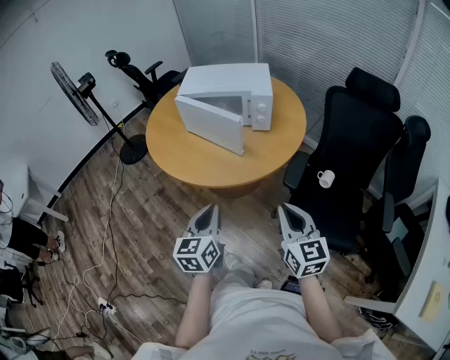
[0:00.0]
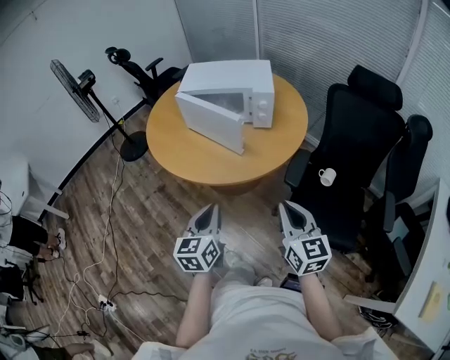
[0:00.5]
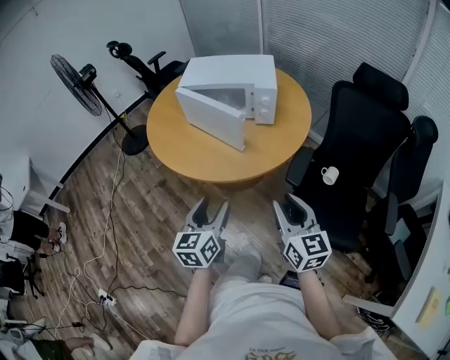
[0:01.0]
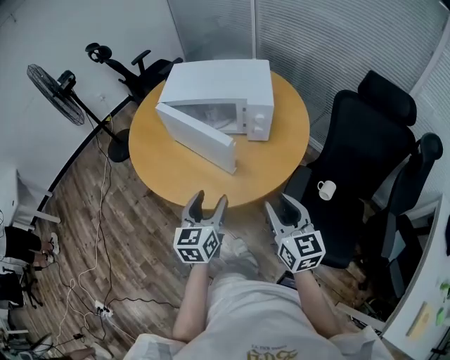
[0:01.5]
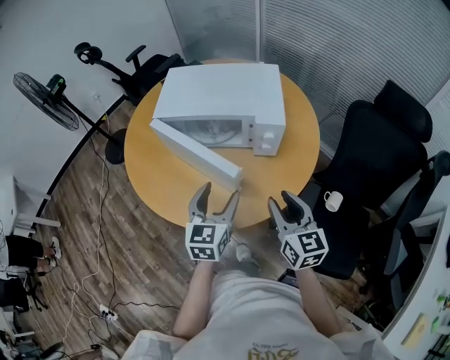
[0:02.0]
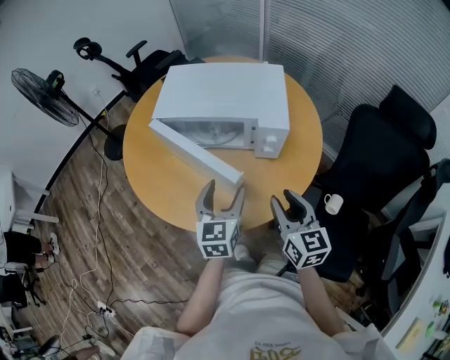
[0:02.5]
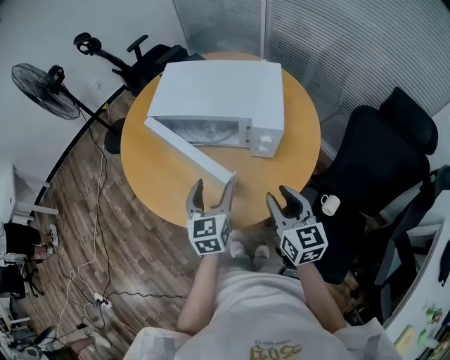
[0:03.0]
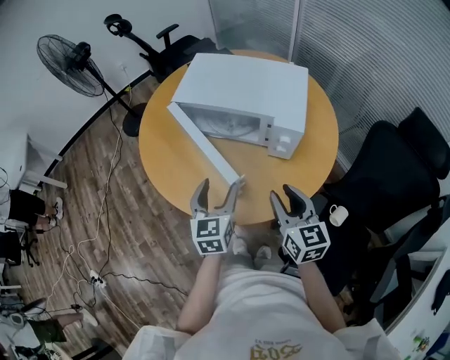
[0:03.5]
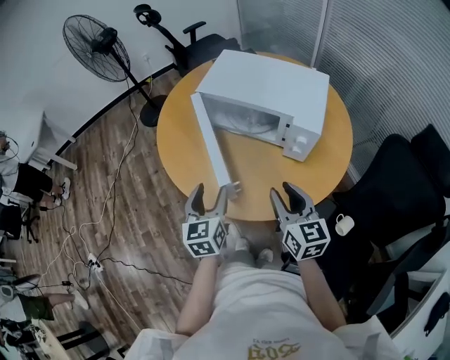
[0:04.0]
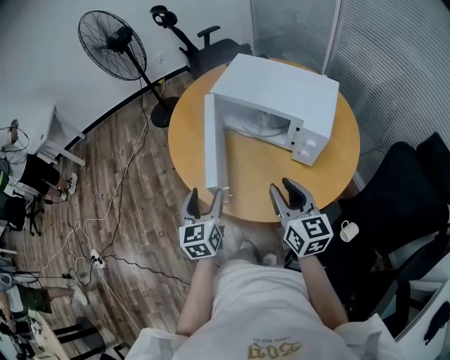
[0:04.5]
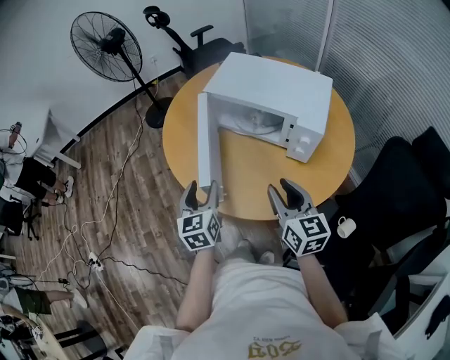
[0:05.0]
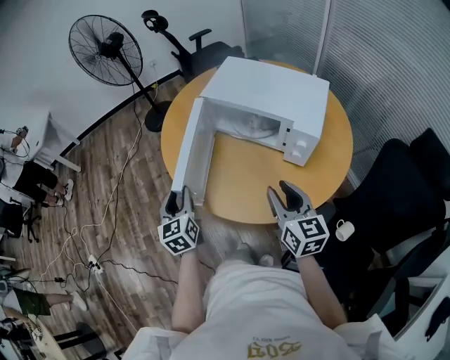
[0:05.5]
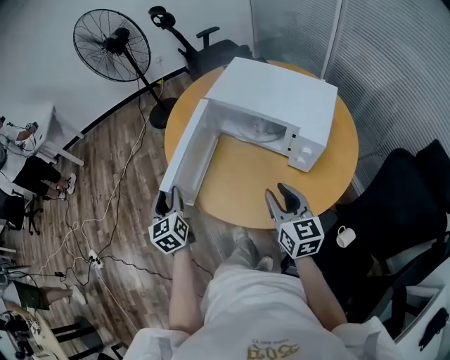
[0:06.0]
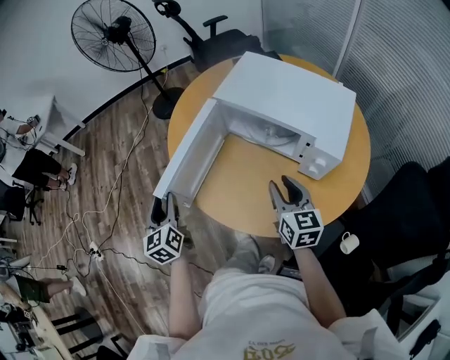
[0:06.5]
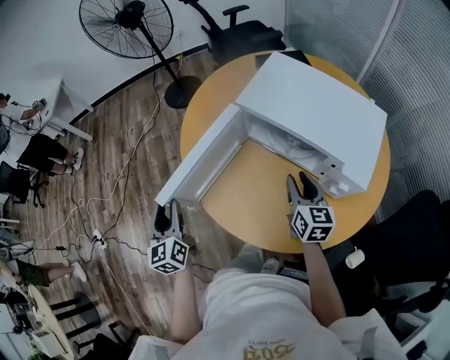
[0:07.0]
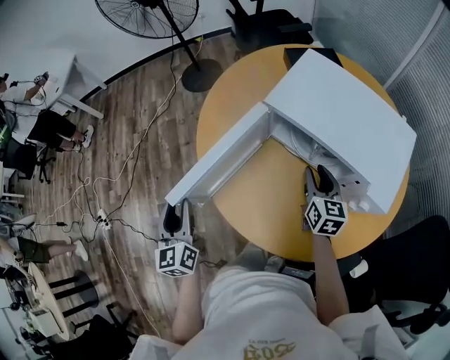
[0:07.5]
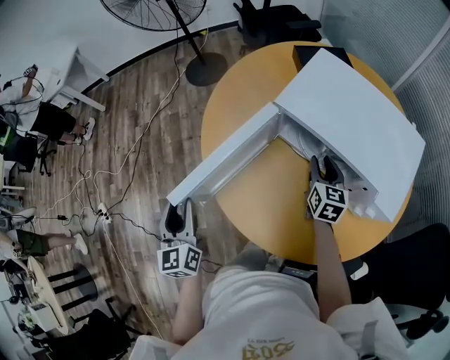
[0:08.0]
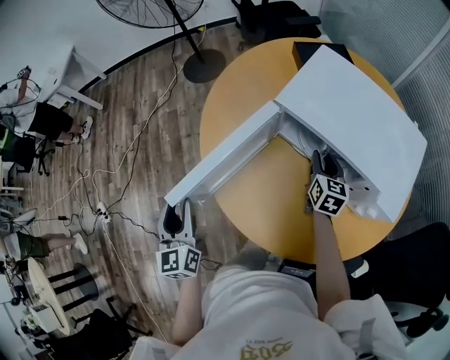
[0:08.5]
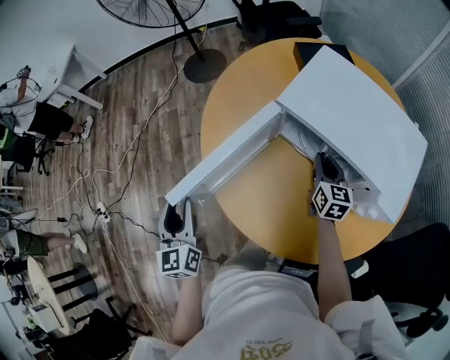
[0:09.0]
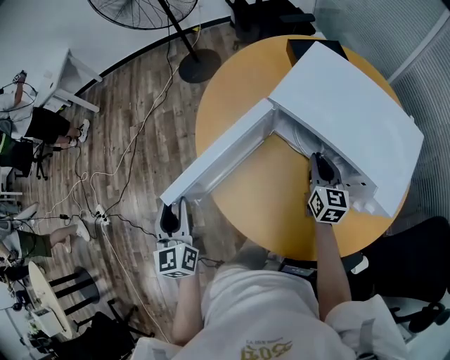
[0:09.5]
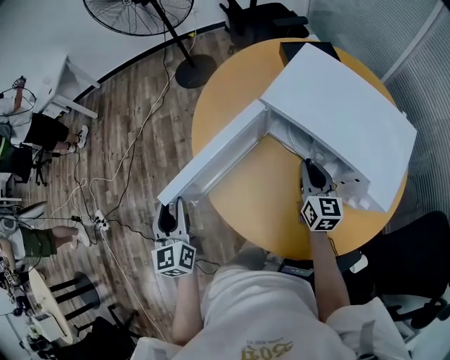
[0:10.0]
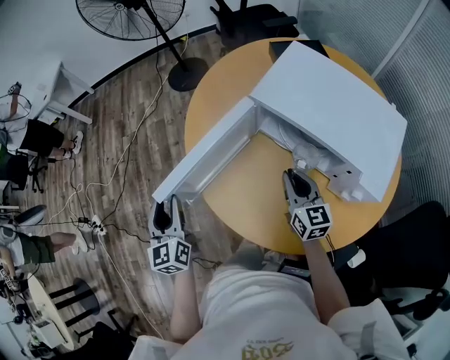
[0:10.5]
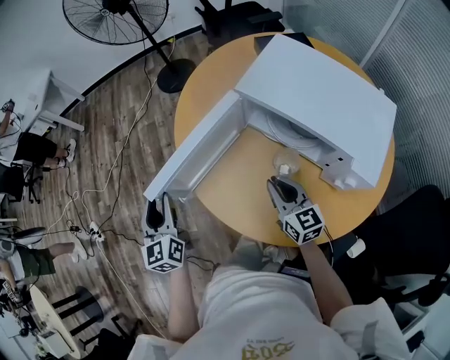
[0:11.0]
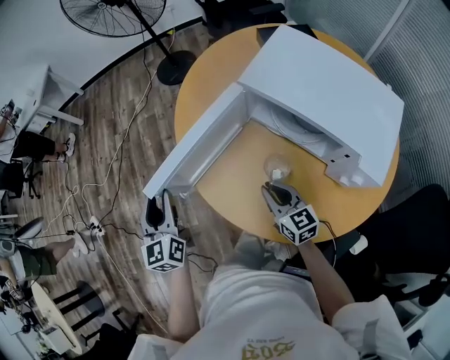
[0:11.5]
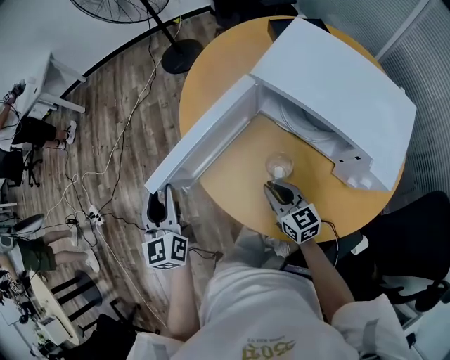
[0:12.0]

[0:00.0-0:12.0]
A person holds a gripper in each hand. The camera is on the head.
0.0 to 2.0 s: The two grippers go about 30 cm forward. The right gripper opens up. The left gripper opens up.
2.0 to 4.0 s: The left gripper is displaced to the left by roughly 10 cm, and changes its angle by approximately 30 degrees.
4.0 to 6.0 s: The left gripper goes approximately 15 cm to the left, and turns by about 20 degrees.
6.0 to 8.0 s: The right gripper moves forward and downward, some 30 cm, while the left gripper travels to the left and forward by approximately 5 cm.
8.0 to 10.0 s: The right gripper closes its fingers.
10.0 to 12.0 s: The right gripper heads to the left, backward and downward, covering about 15 cm, and rotates some 30 degrees.

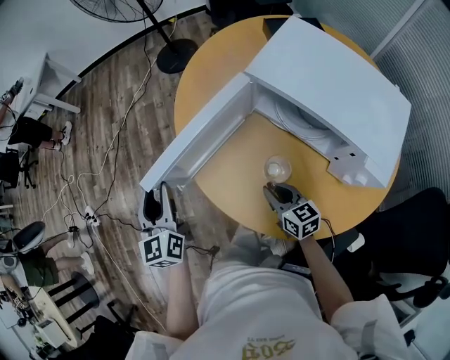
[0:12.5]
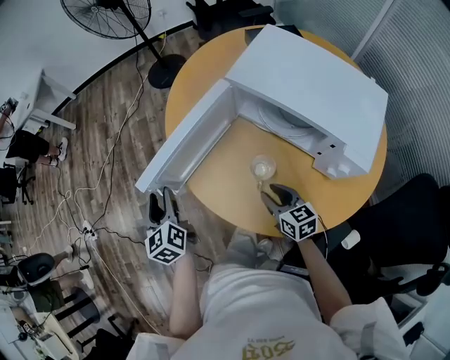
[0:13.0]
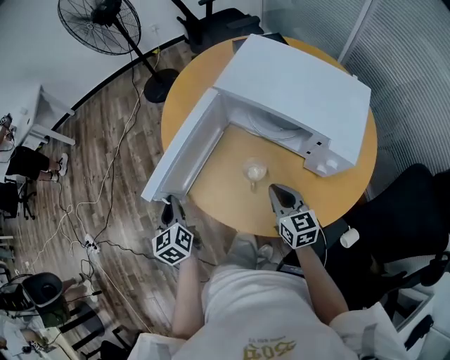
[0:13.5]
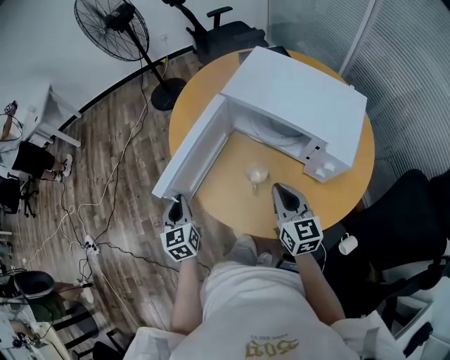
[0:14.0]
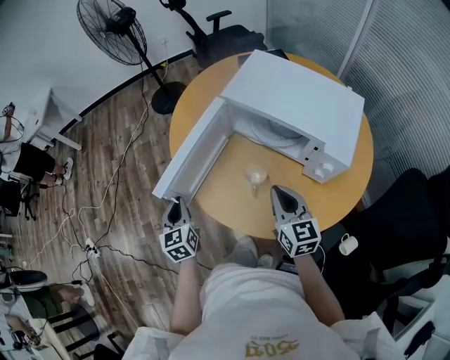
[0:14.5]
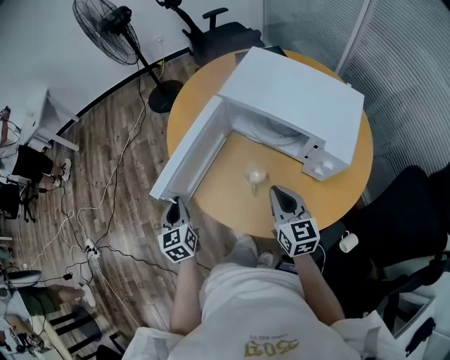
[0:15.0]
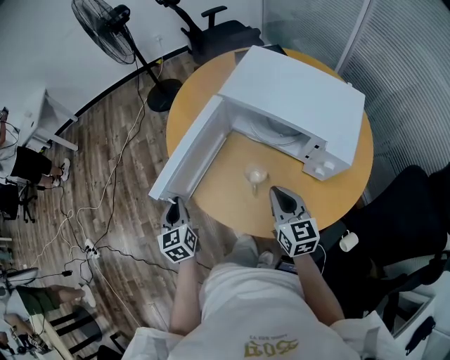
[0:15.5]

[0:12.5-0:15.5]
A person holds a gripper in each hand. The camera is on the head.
12.5 to 14.0 s: The right gripper heads upward, covering some 15 cm, and swivels approximately 30 degrees. Meanwhile the left gripper goes about 10 cm downward and to the right, and closes.
14.0 to 15.5 s: There are only small adjustments of the grippers.

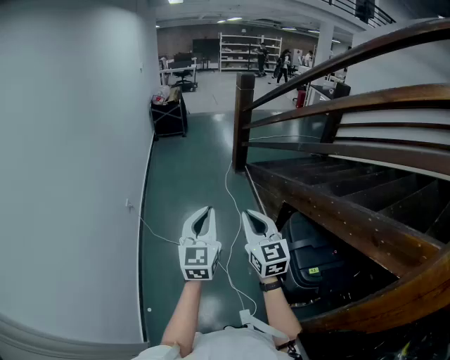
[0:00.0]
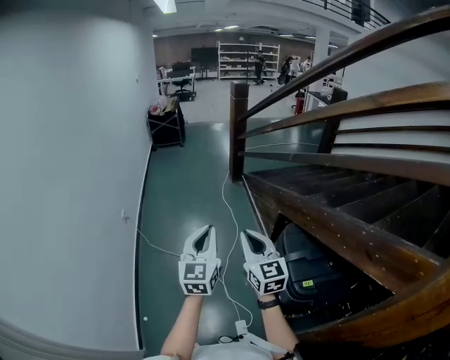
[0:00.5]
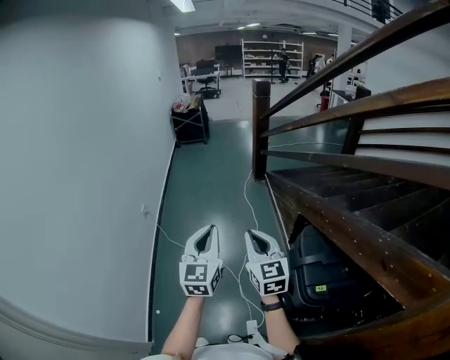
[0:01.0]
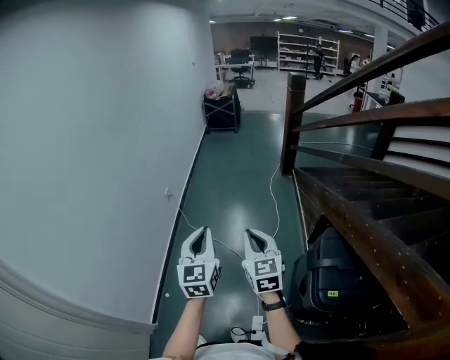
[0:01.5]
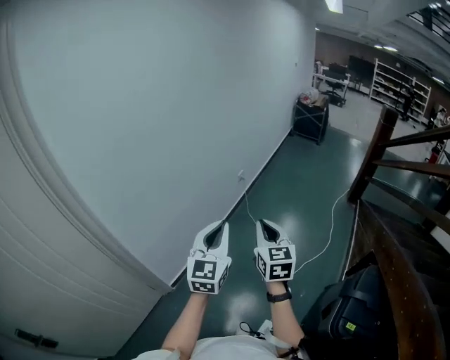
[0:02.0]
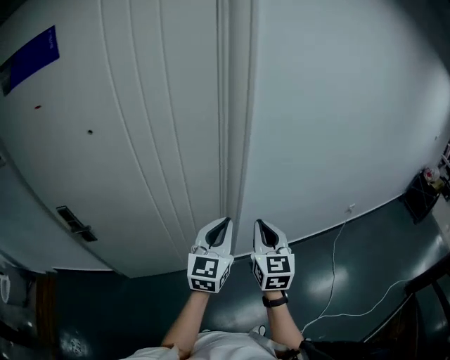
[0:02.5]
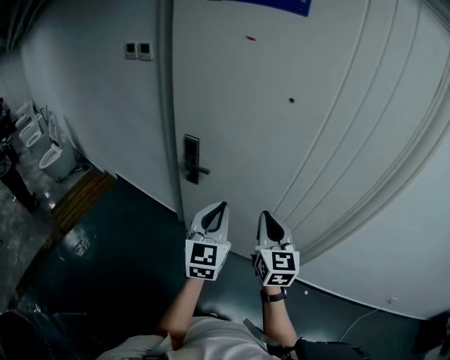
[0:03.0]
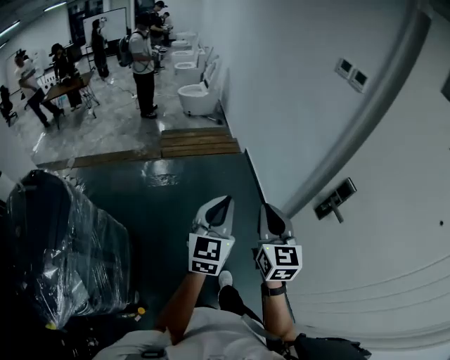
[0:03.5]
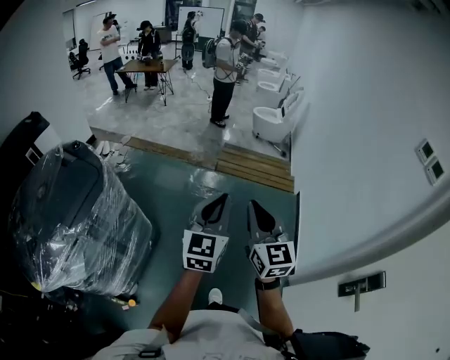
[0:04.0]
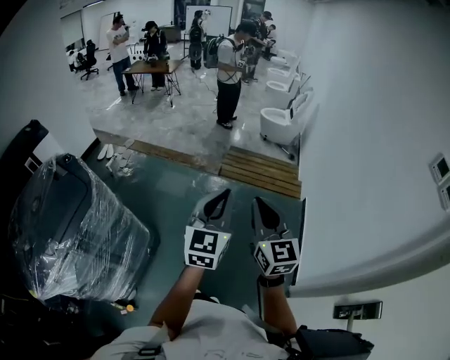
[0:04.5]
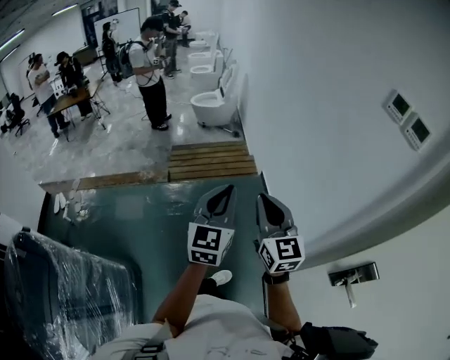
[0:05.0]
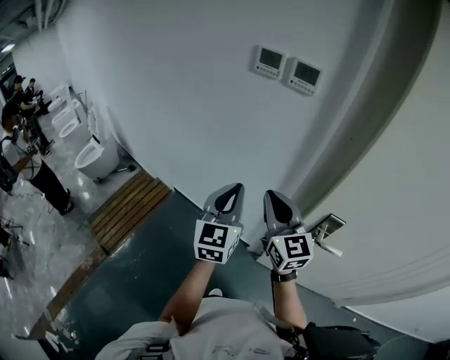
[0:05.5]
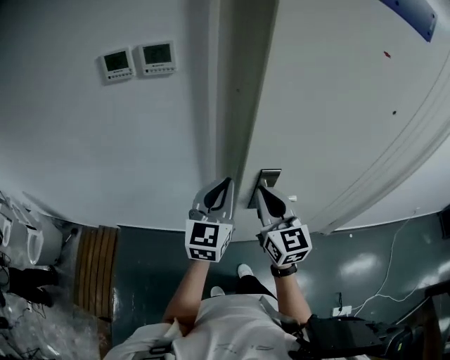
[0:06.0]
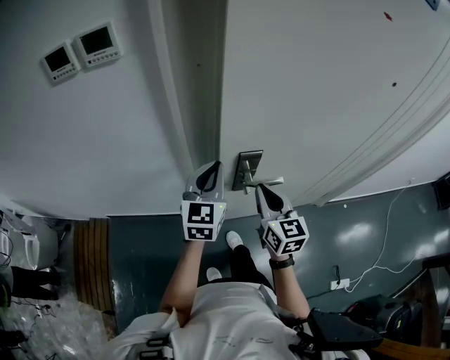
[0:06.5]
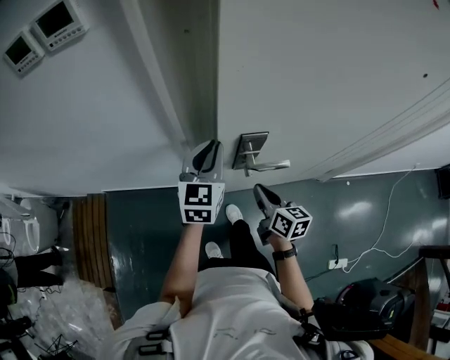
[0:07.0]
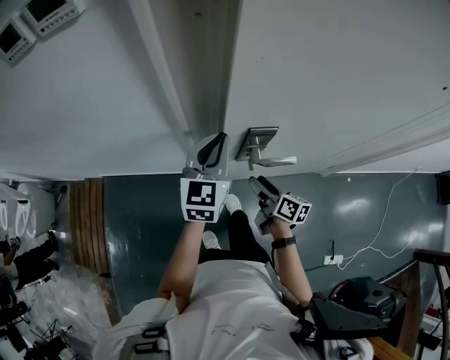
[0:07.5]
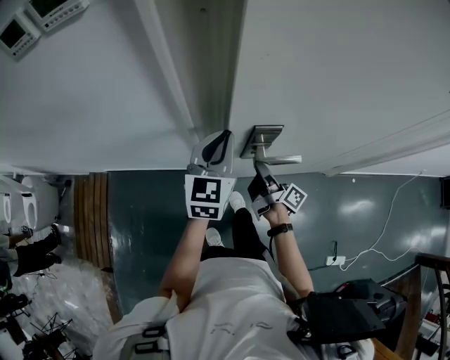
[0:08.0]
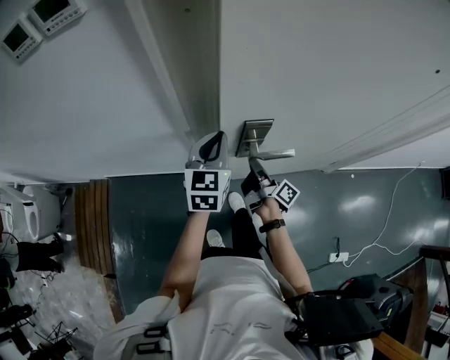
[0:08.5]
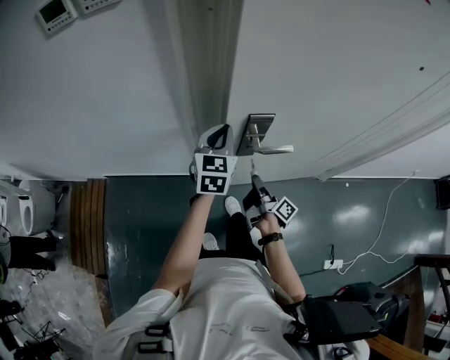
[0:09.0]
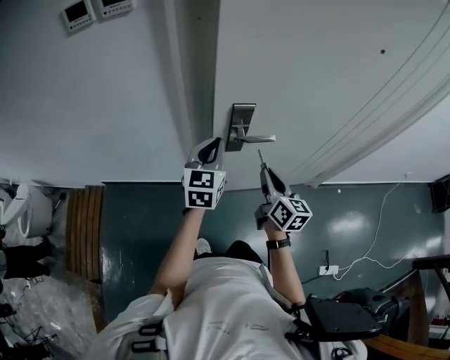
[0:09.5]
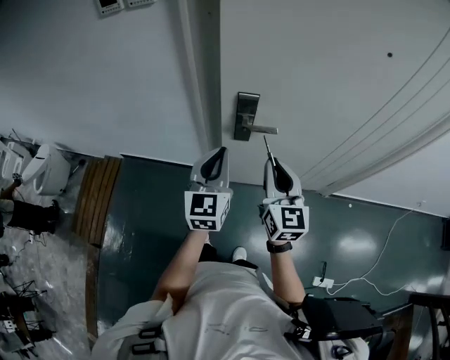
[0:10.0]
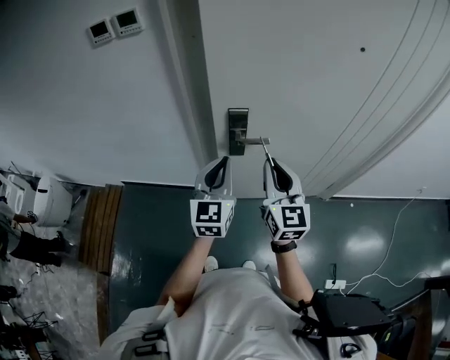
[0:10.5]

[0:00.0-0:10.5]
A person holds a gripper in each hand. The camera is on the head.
0.0 to 2.0 s: The right gripper moves about 25 cm, and rotates roughly 40 degrees. The left gripper moves some 25 cm, and rotates some 40 degrees.
2.0 to 4.0 s: The pair of grippers is taken approximately 1.5 m. The left gripper swivels approximately 160 degrees, while the right gripper turns by about 170 degrees.
4.0 to 6.5 s: Both grippers are carried approximately 60 cm. The left gripper turns by roughly 100 degrees. The right gripper changes its angle by roughly 110 degrees.
6.5 to 8.5 s: The left gripper travels downward by about 10 cm. The right gripper moves downward, some 20 cm, rolls clockwise, seen from behind, by some 80 degrees, and opens and closes again.
8.5 to 10.5 s: The left gripper moves backward and upward, some 25 cm, while the right gripper goes roughly 30 cm upward and backward, and rotates around the line of its fingers by about 90 degrees, counterclockwise from behind.

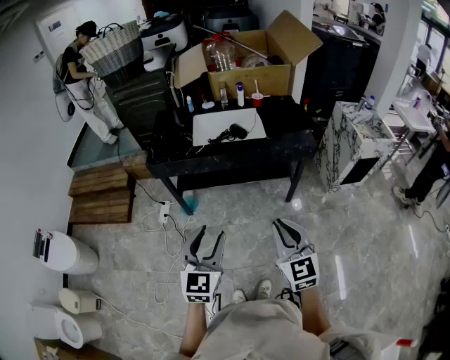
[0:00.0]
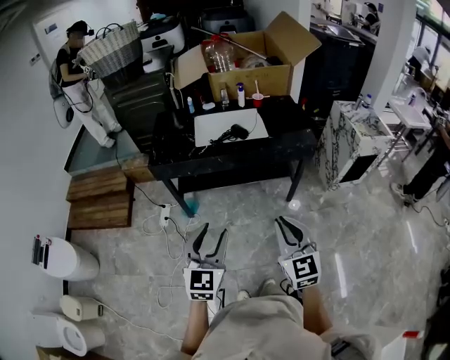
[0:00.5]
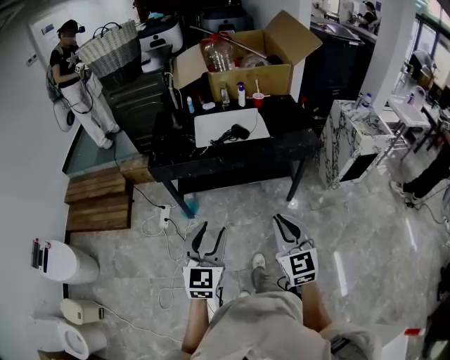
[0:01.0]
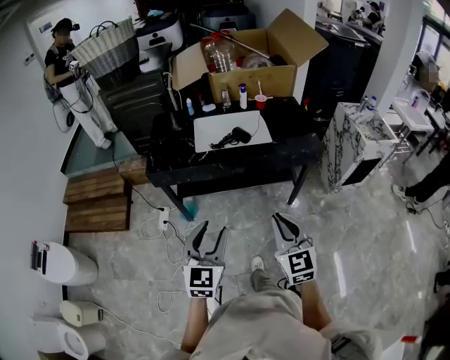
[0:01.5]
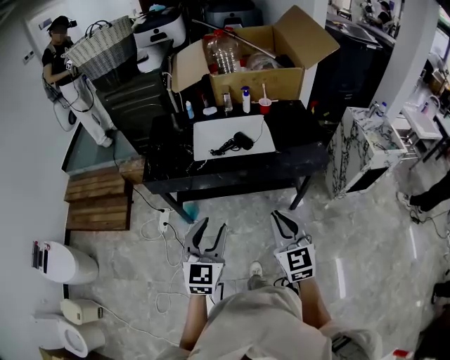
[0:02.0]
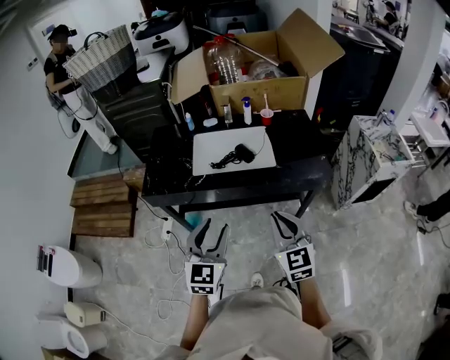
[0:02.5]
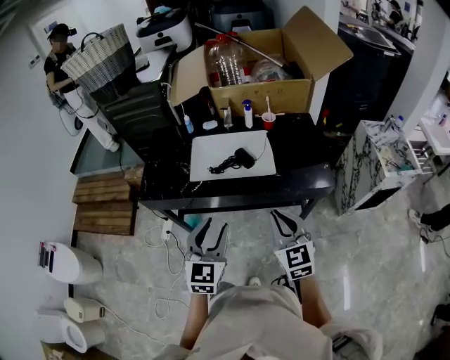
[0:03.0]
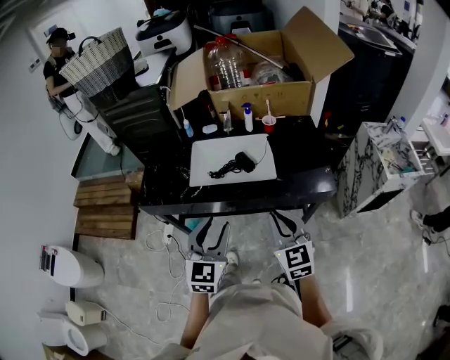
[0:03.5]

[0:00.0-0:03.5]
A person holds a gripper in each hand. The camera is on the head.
0.0 to 2.0 s: Both grippers travel together forward, approximately 15 cm.
2.0 to 3.5 s: Both grippers travel together forward and to the right, about 15 cm.
